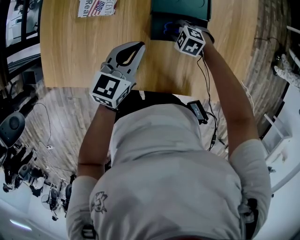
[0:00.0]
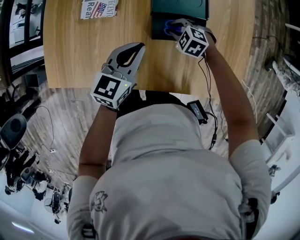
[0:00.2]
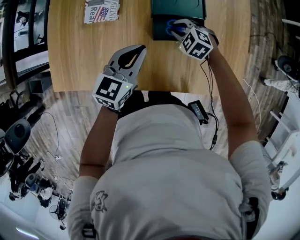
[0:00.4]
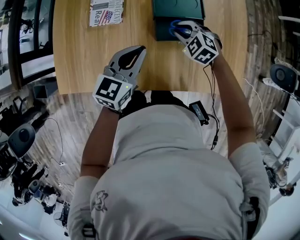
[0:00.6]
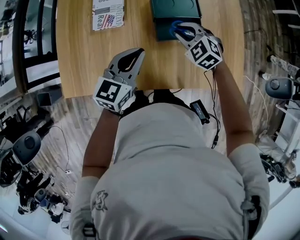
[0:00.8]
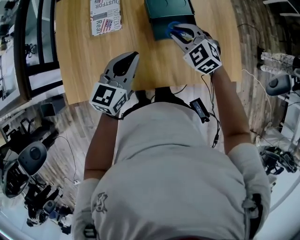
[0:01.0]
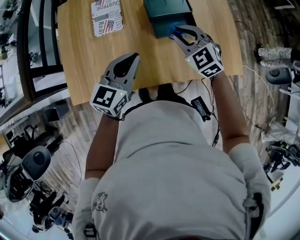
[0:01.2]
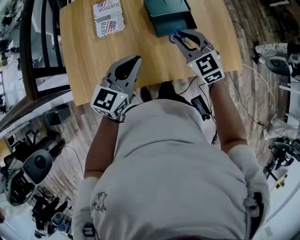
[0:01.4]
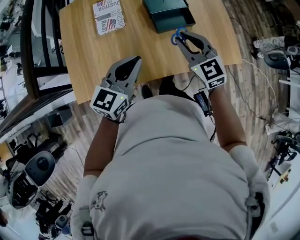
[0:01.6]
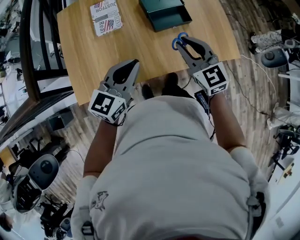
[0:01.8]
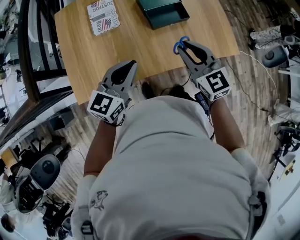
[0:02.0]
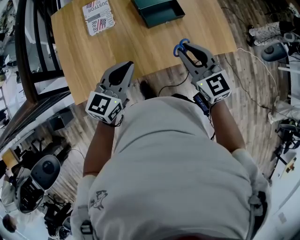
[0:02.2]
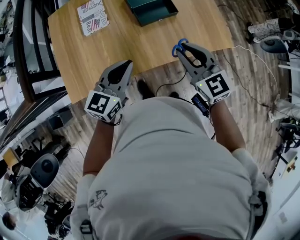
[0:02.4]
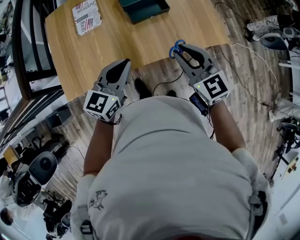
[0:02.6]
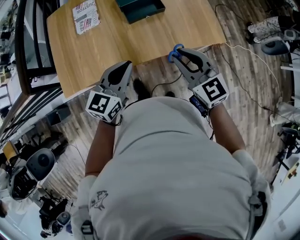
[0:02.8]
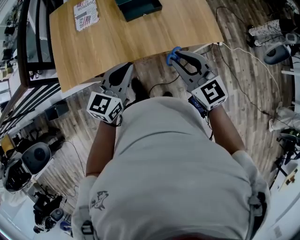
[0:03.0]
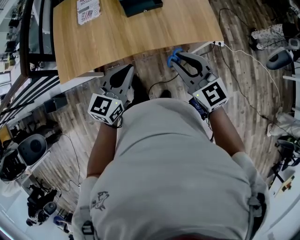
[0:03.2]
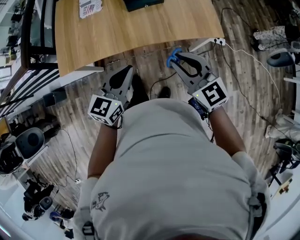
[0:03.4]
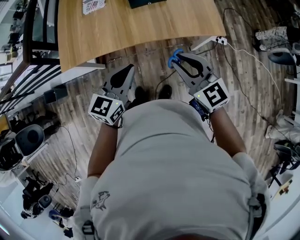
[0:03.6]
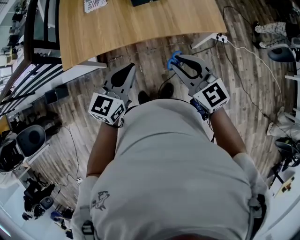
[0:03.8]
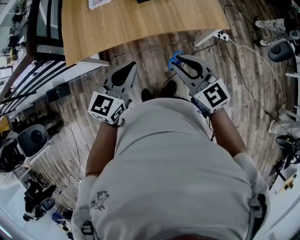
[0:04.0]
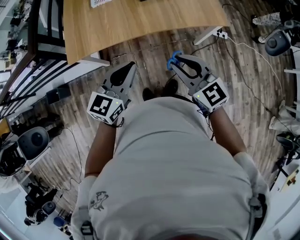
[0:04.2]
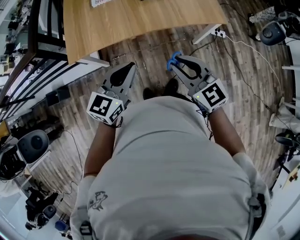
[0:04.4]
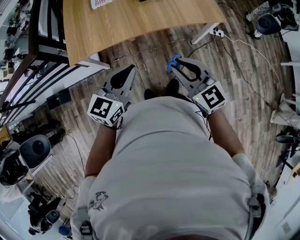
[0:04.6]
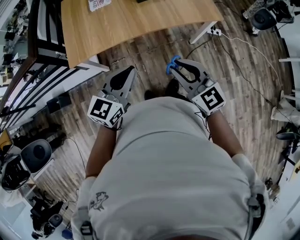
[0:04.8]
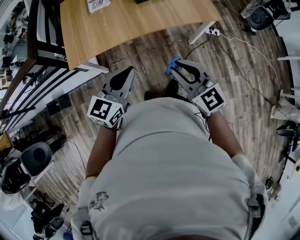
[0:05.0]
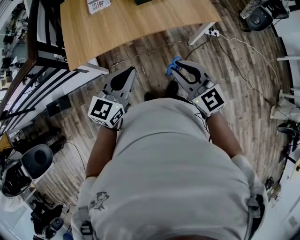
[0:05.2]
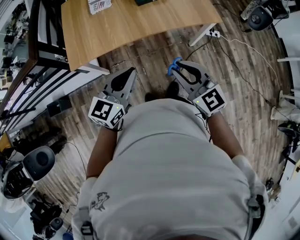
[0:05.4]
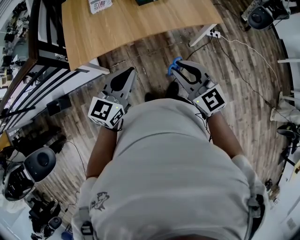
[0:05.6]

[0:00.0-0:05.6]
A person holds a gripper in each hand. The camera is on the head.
0:00.0 to 0:01.4: The right gripper is displaced upward by about 30 cm, and tips its fingers upward by some 40 degrees; the left gripper ends up about 20 cm from where it was, and swivels approximately 20 degrees.
0:01.4 to 0:02.8: The left gripper travels to the right and backward by about 15 cm. Meanwhile the right gripper moves backward and to the right, some 25 cm.
0:02.8 to 0:04.2: The grippers both shift backward by approximately 20 cm.
0:04.2 to 0:05.6: The left gripper changes place by roughly 5 cm. Meanwhile the right gripper heads backward, covering about 5 cm.

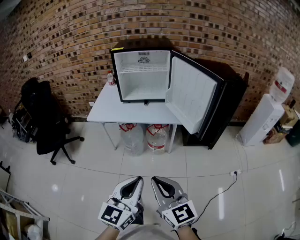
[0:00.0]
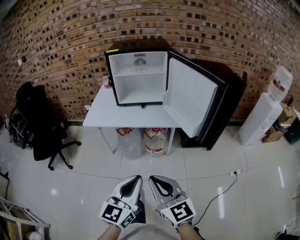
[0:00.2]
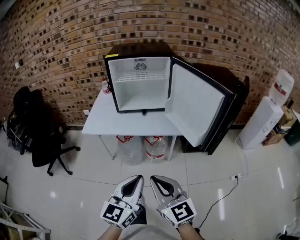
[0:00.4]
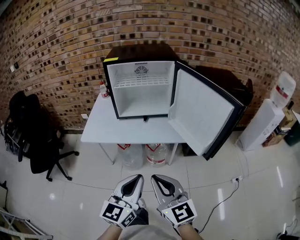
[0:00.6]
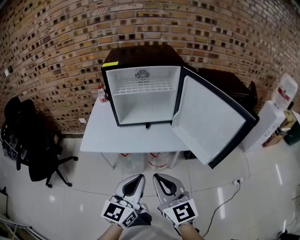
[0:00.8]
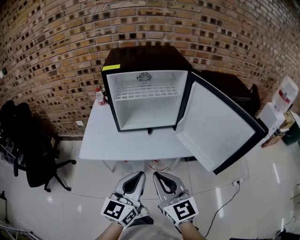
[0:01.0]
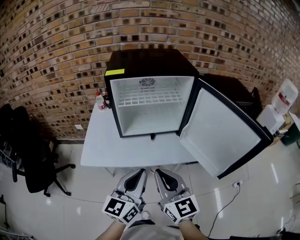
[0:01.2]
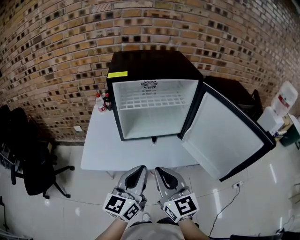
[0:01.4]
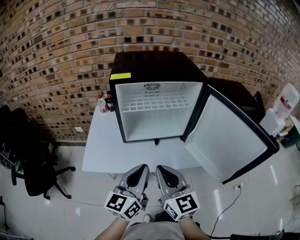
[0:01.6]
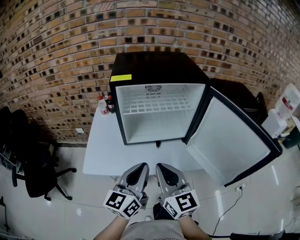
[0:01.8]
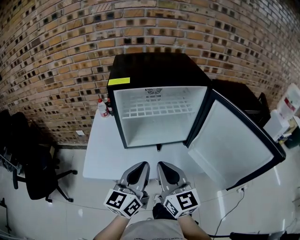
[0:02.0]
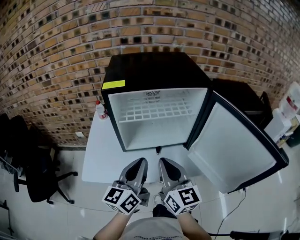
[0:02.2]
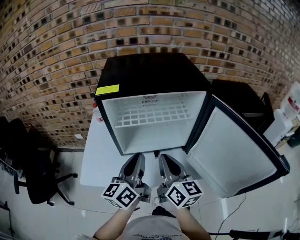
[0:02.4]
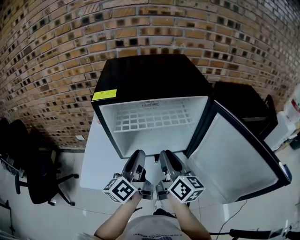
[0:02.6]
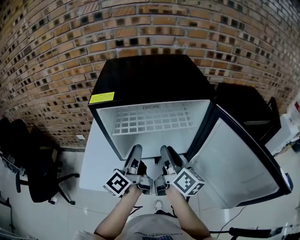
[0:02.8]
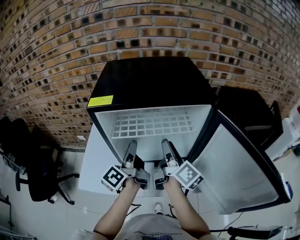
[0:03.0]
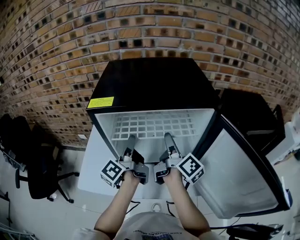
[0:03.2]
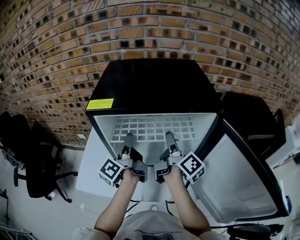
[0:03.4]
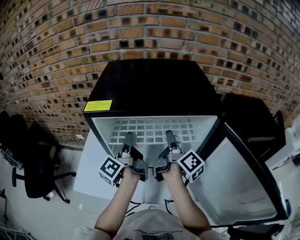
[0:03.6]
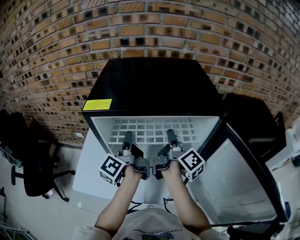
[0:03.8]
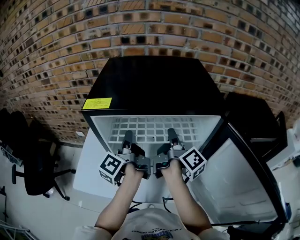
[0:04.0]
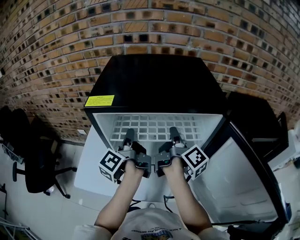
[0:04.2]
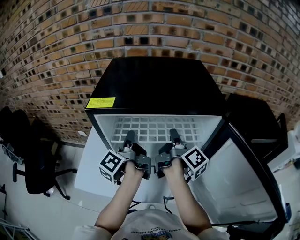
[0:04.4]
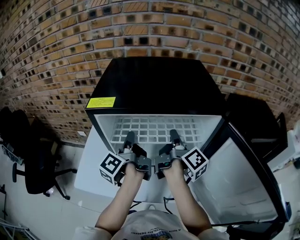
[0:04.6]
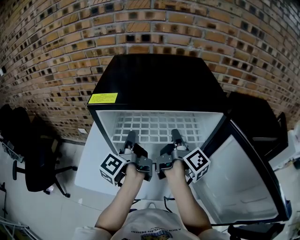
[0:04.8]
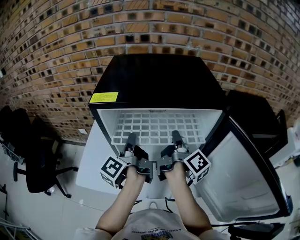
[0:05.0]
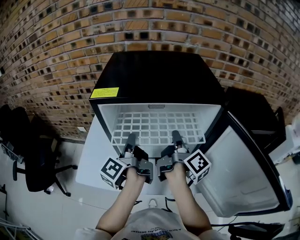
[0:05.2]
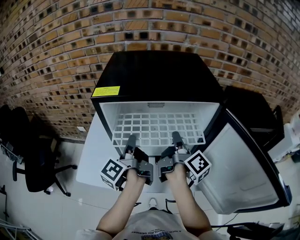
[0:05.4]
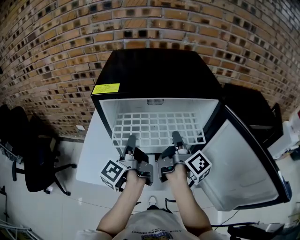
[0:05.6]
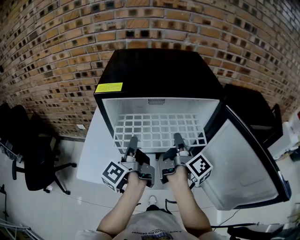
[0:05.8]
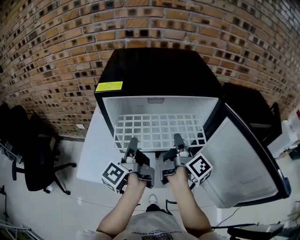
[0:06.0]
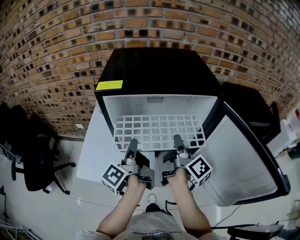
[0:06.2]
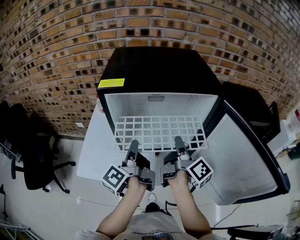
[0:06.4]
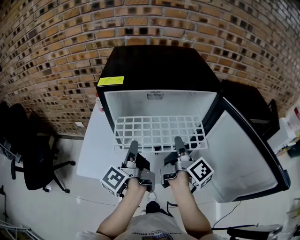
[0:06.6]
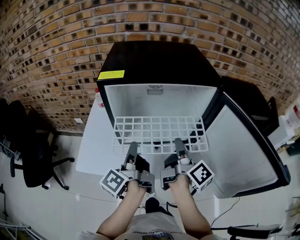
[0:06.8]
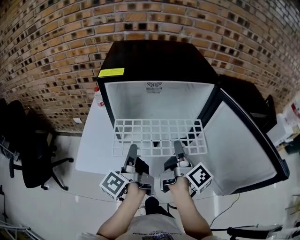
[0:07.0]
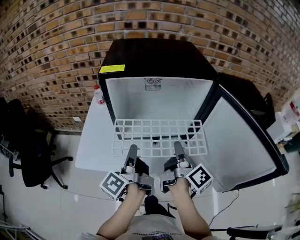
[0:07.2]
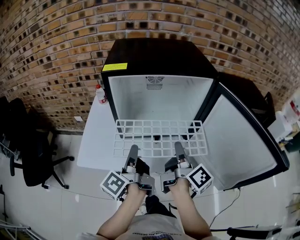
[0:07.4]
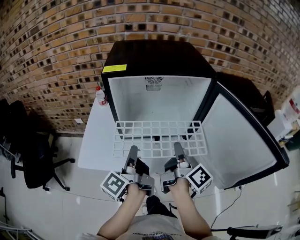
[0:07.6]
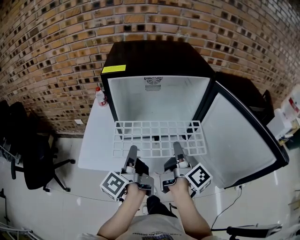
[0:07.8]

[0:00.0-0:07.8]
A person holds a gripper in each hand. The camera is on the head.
0:00.0 to 0:01.6: The two grippers travel together, forward, some 40 cm.
0:01.6 to 0:03.2: The grippers both shift forward by roughly 30 cm. The right gripper twists roughly 60 degrees clockwise, seen from behind, and opens up. The left gripper rotates around the line of its fingers by about 50 degrees, counterclockwise from behind, and opens.
0:03.2 to 0:04.6: The right gripper closes, while the left gripper closes its fingers.
0:04.6 to 0:06.2: Both grippers travel together backward, some 10 cm.
0:06.2 to 0:07.8: The two grippers go roughly 10 cm backward.

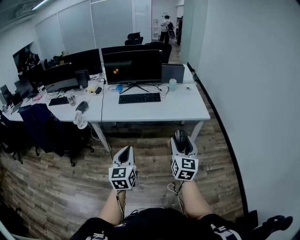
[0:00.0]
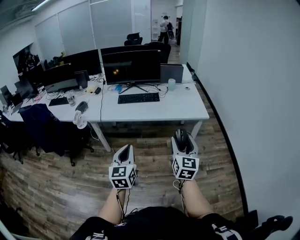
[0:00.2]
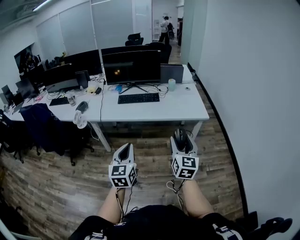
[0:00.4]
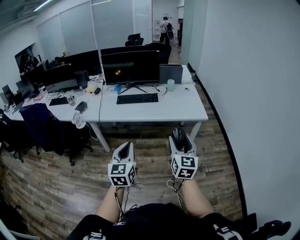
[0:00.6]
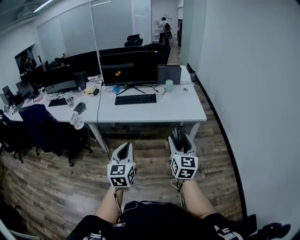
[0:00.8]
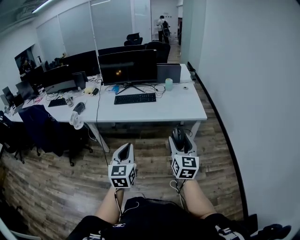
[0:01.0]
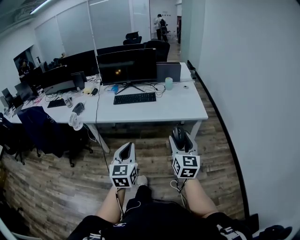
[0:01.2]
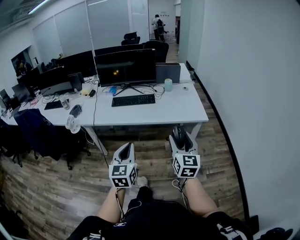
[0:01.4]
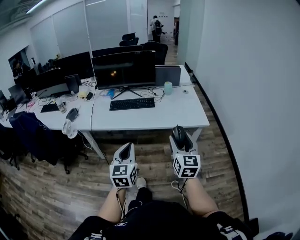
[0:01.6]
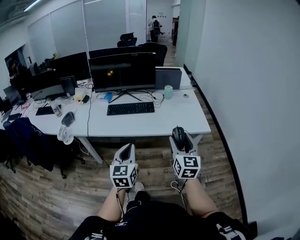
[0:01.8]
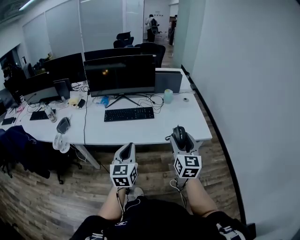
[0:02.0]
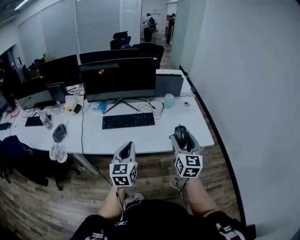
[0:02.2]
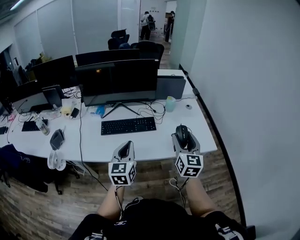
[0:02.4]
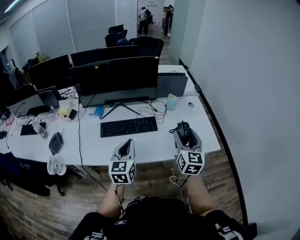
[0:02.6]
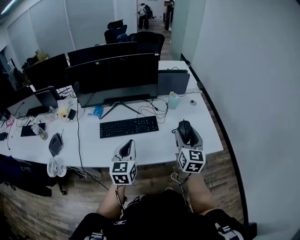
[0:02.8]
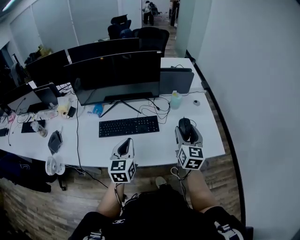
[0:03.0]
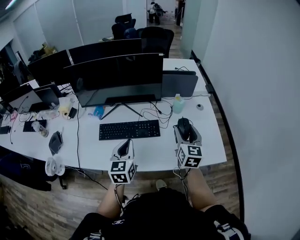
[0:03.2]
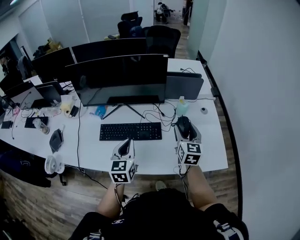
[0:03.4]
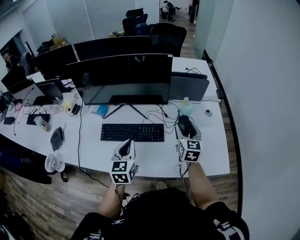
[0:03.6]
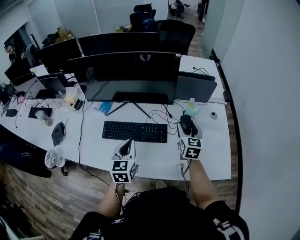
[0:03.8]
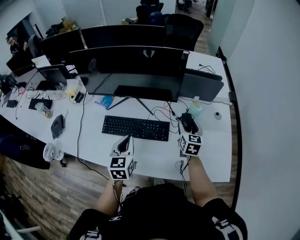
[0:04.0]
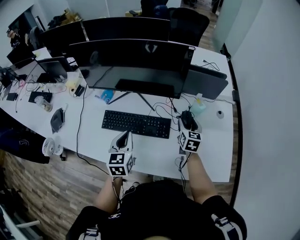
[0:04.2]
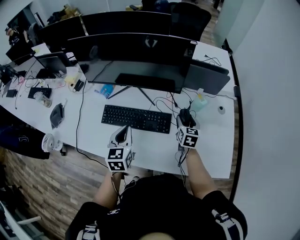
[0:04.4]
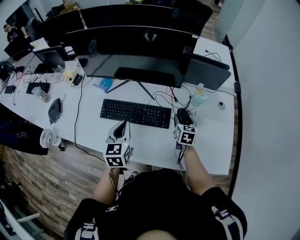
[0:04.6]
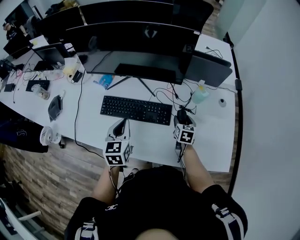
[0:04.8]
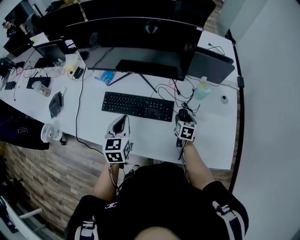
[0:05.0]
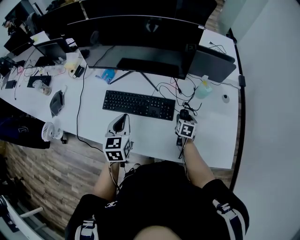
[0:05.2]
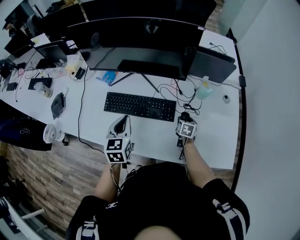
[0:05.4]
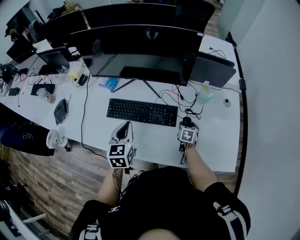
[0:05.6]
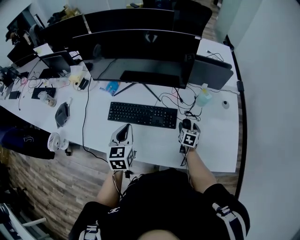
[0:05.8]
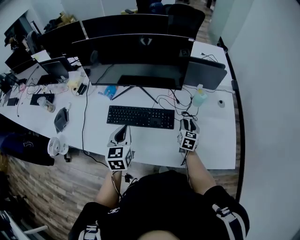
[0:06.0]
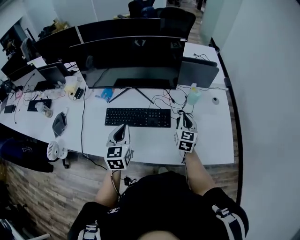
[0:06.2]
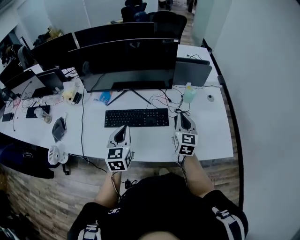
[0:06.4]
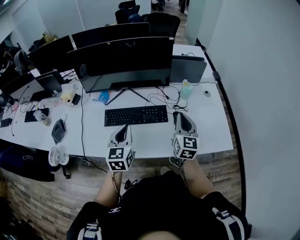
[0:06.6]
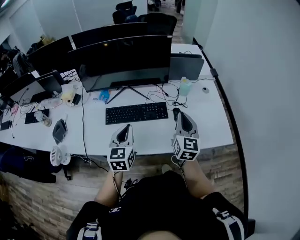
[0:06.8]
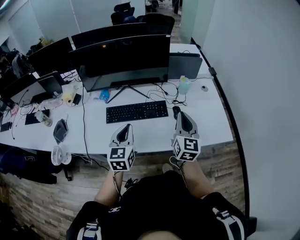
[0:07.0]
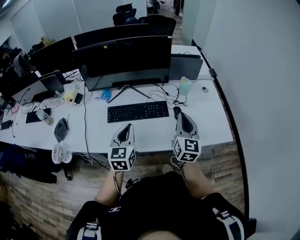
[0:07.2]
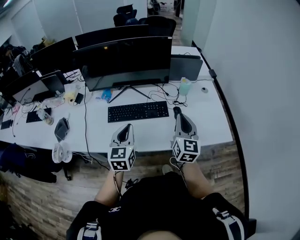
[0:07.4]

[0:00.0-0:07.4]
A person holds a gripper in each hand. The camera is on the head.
0:00.0 to 0:01.4: The left gripper goes roughly 10 cm to the right and forward. The right gripper moves forward and to the right, roughly 10 cm.
0:01.4 to 0:03.0: The pair of grippers is taken forward, some 60 cm.
0:03.0 to 0:04.4: The left gripper is displaced forward and downward by some 15 cm, while the right gripper travels forward and downward by about 30 cm, and changes its angle by about 20 degrees.
0:04.4 to 0:06.0: The right gripper is displaced backward by approximately 5 cm, and moves roughly 15 cm downward and comes back.
0:06.0 to 0:07.4: The left gripper travels backward and upward by approximately 10 cm. The right gripper shifts approximately 30 cm upward and backward, swivels approximately 30 degrees, and closes.

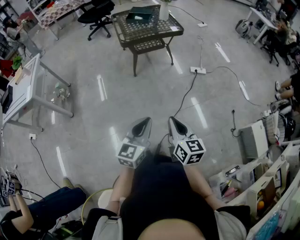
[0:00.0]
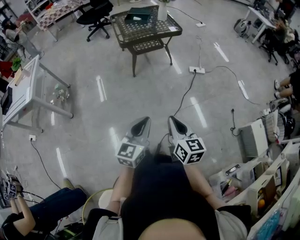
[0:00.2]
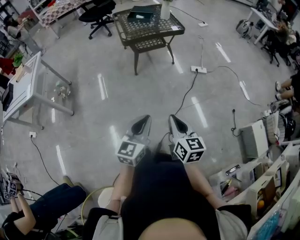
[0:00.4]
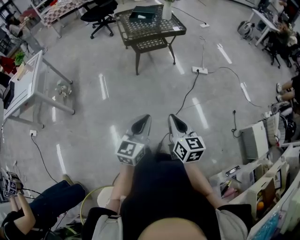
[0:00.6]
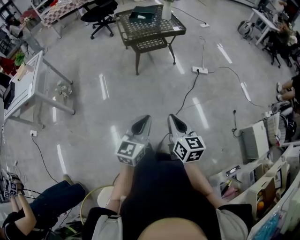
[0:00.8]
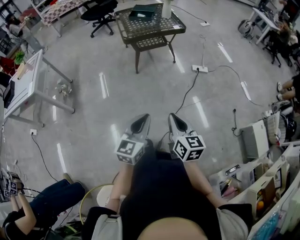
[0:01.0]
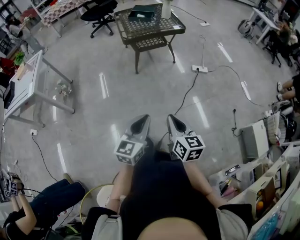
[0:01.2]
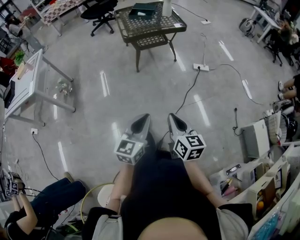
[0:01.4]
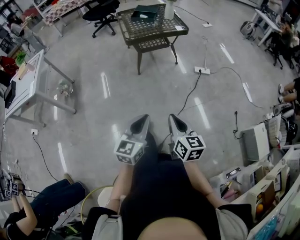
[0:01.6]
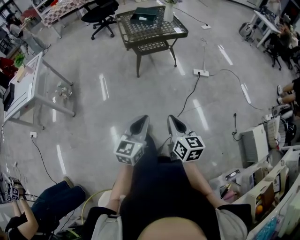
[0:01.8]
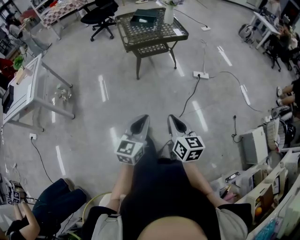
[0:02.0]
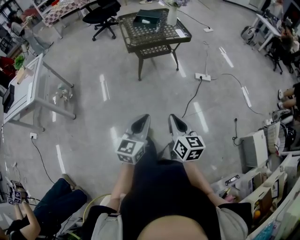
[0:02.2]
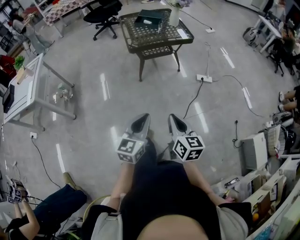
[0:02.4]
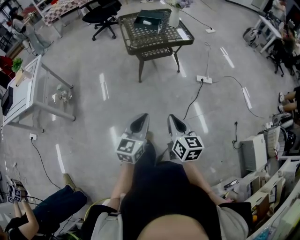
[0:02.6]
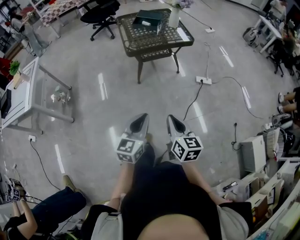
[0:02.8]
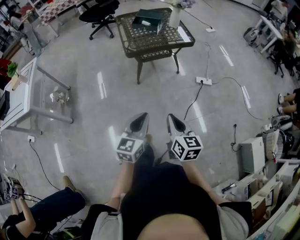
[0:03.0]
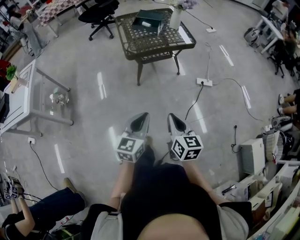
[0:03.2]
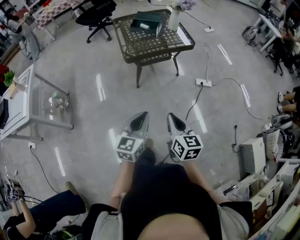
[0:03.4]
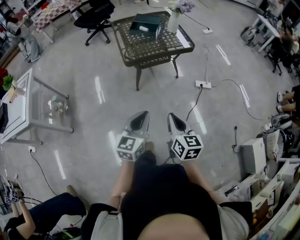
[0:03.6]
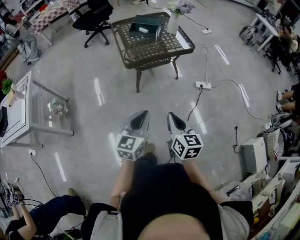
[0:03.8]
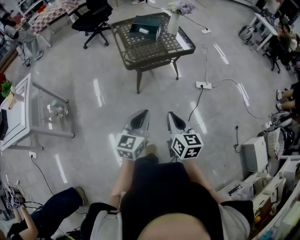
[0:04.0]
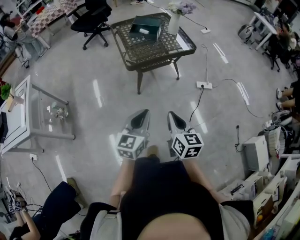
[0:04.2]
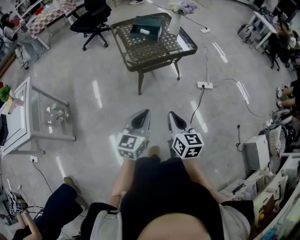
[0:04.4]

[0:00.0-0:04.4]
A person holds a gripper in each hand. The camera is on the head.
0:00.0 to 0:01.4: The grippers move only a little.
0:01.4 to 0:03.0: The grippers both shift forward by about 20 cm.
0:03.0 to 0:04.4: Both grippers travel together forward and to the left, some 15 cm.
